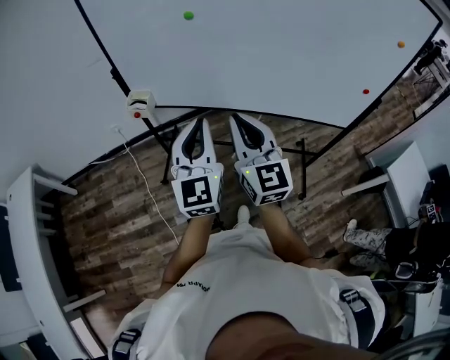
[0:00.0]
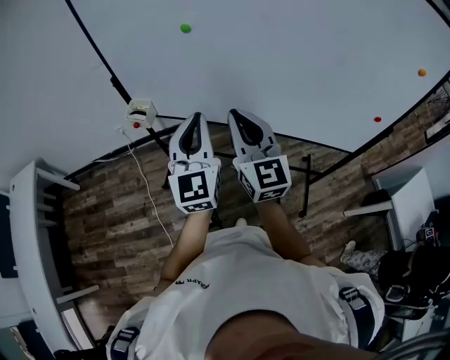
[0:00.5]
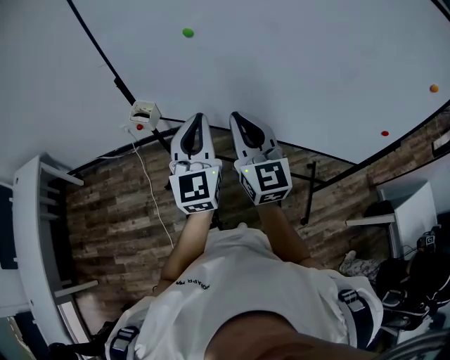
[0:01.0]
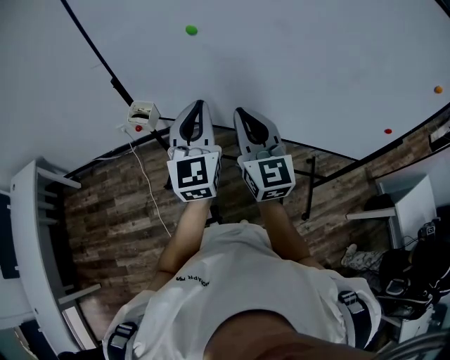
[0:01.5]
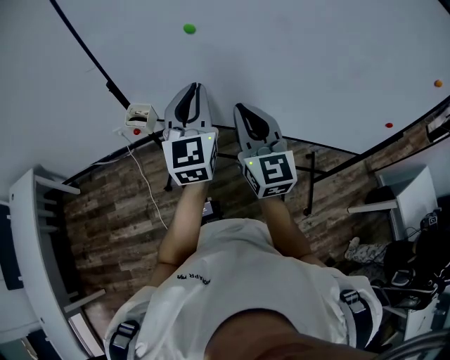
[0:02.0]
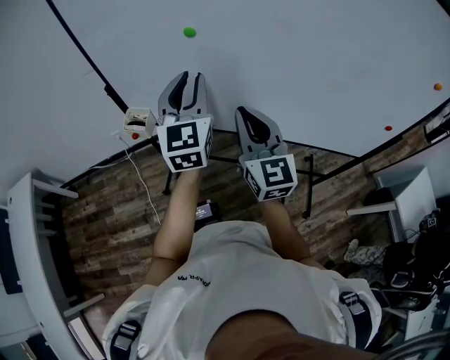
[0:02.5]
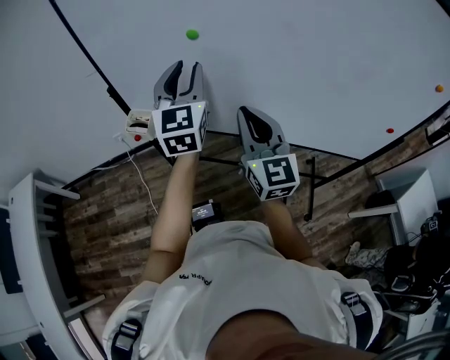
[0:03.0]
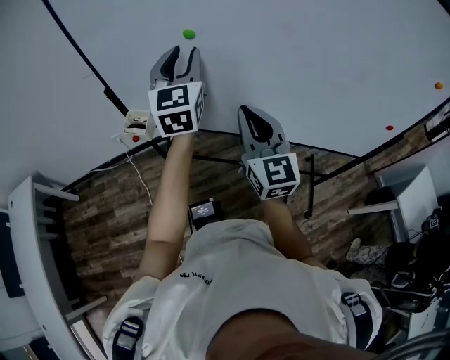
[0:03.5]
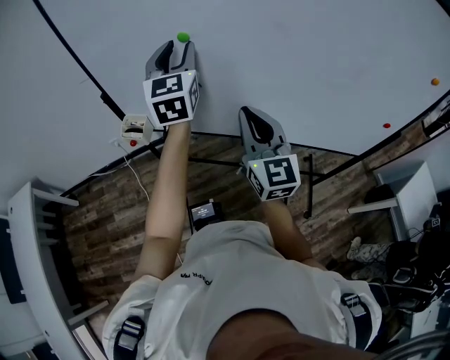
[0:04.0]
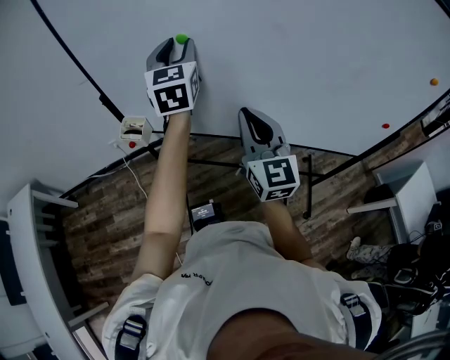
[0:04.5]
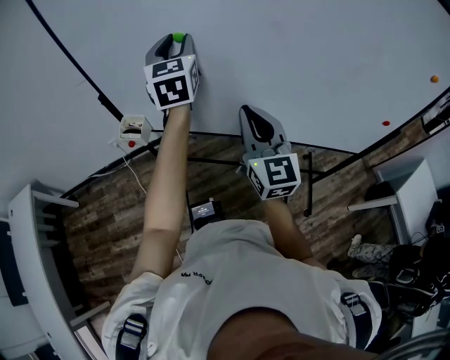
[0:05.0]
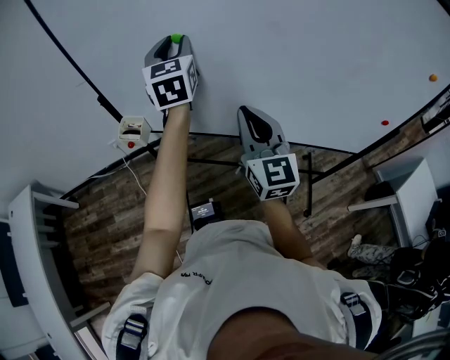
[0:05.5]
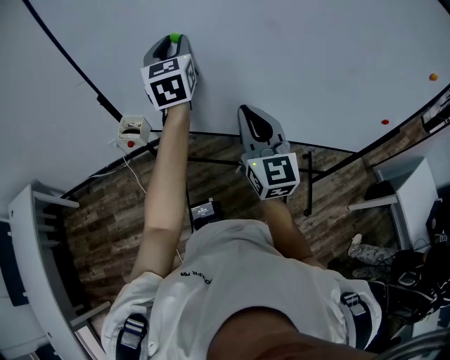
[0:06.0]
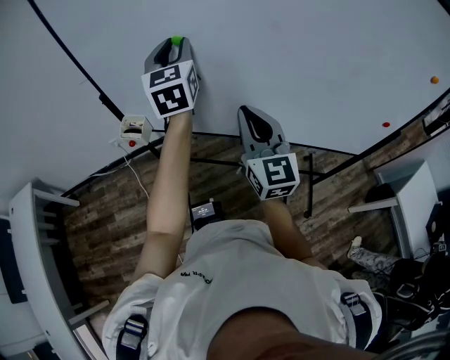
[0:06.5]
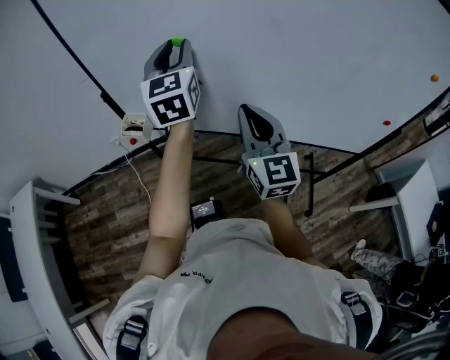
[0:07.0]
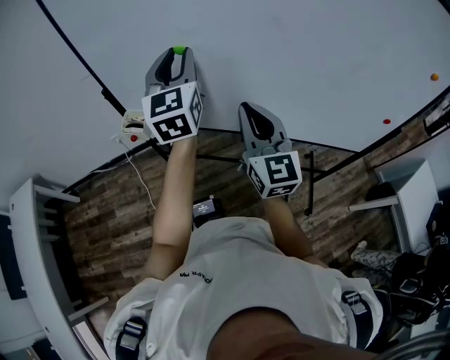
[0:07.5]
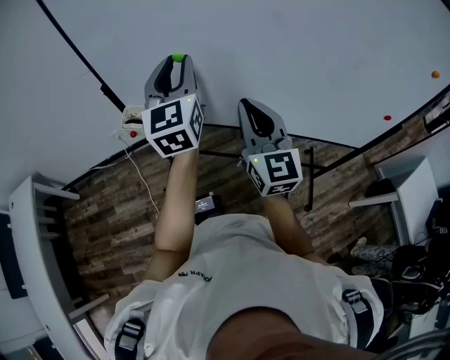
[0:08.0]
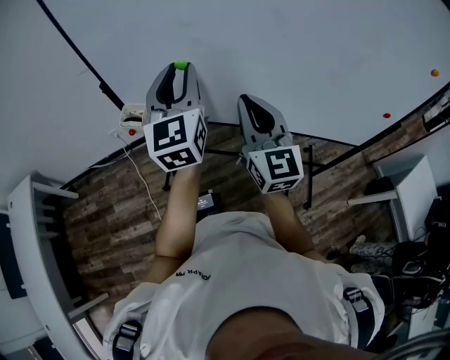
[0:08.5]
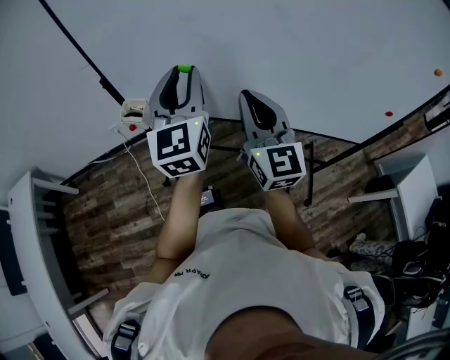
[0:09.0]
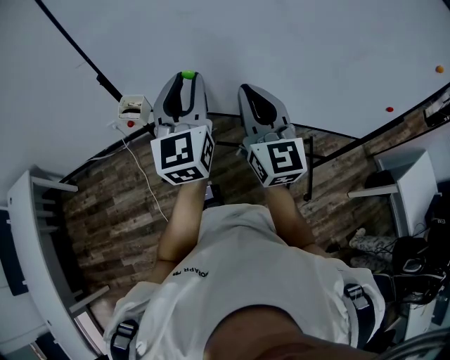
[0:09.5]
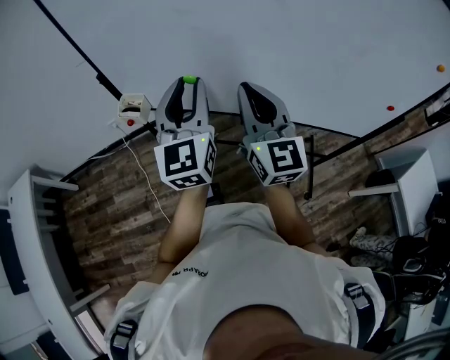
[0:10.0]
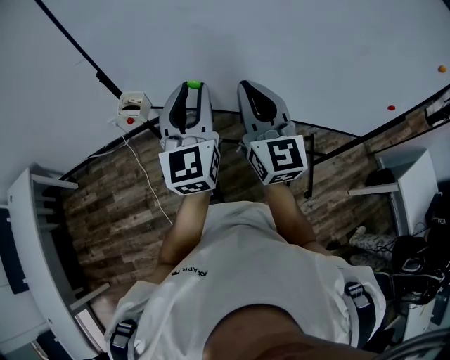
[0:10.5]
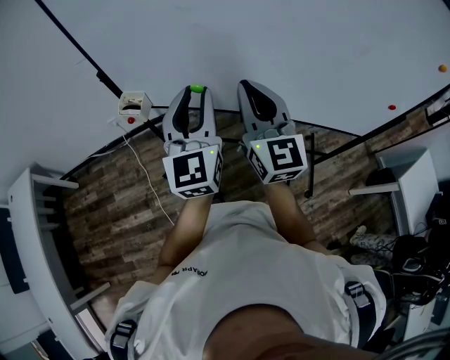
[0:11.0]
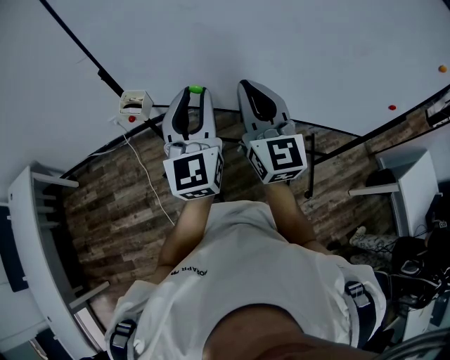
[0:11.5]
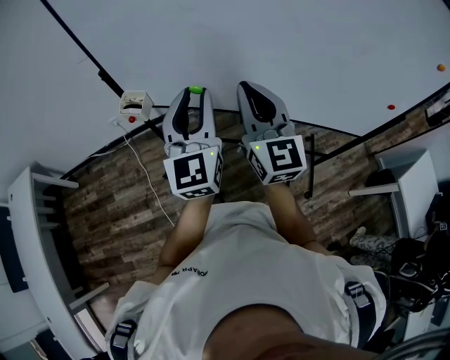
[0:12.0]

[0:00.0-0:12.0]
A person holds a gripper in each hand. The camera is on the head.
0:00.0 to 0:02.0: The two grippers go about 15 cm forward.
0:02.0 to 0:04.0: The left gripper travels forward and upward by about 15 cm, and opens up.
0:04.0 to 0:06.0: The grippers move only a little.
0:06.0 to 0:08.0: The left gripper shifts roughly 10 cm backward.
0:08.0 to 0:10.0: The left gripper goes roughly 10 cm backward.
0:10.0 to 0:12.0: The grippers move only a little.

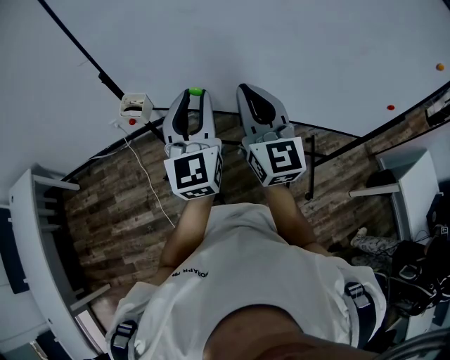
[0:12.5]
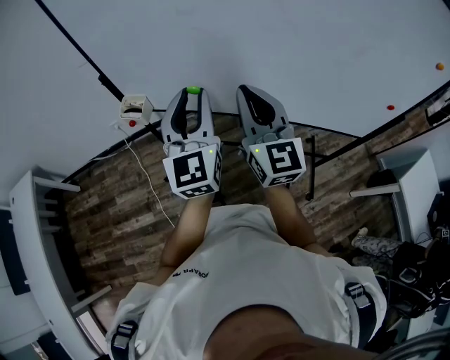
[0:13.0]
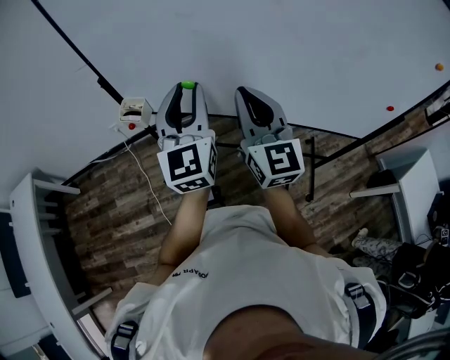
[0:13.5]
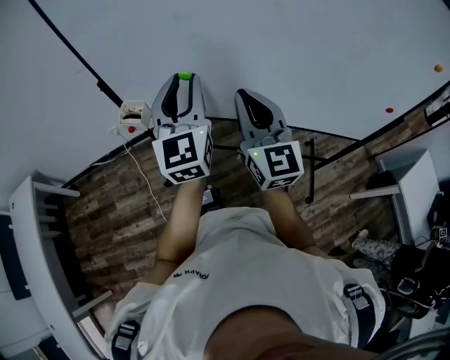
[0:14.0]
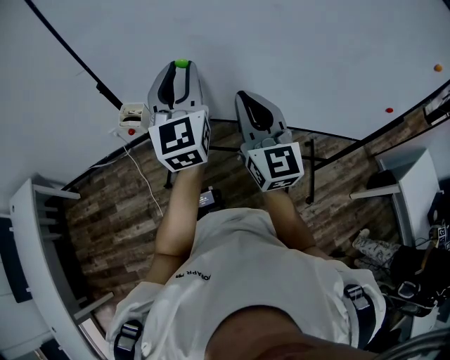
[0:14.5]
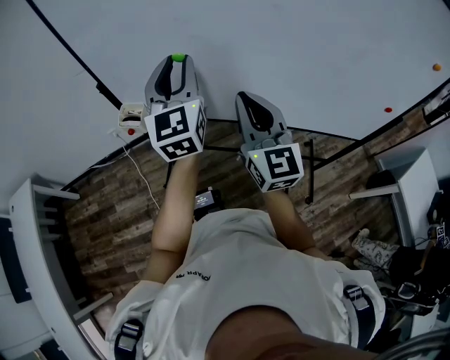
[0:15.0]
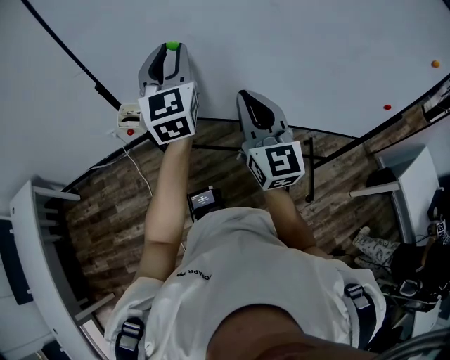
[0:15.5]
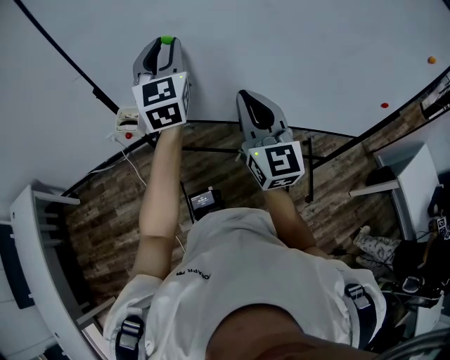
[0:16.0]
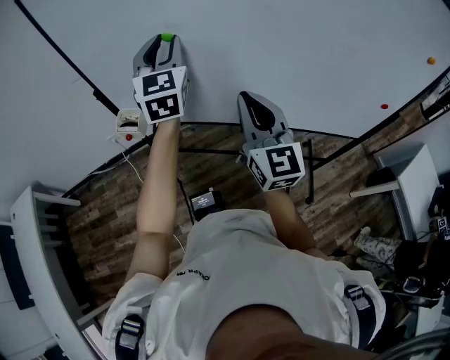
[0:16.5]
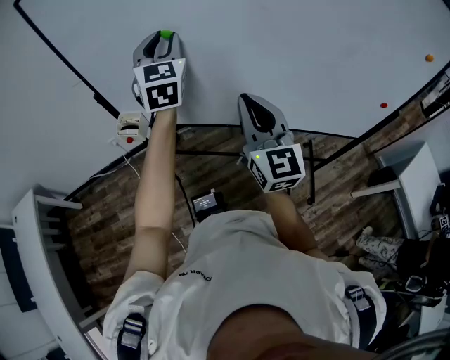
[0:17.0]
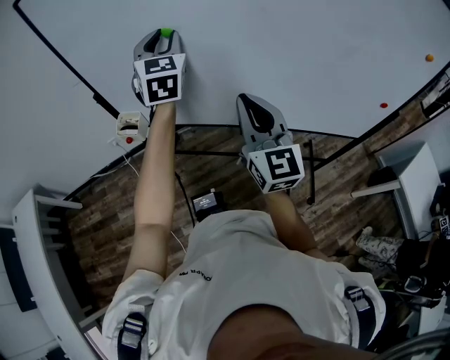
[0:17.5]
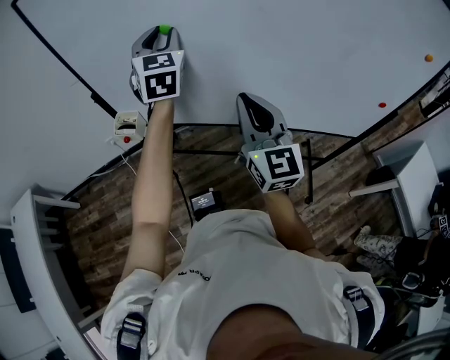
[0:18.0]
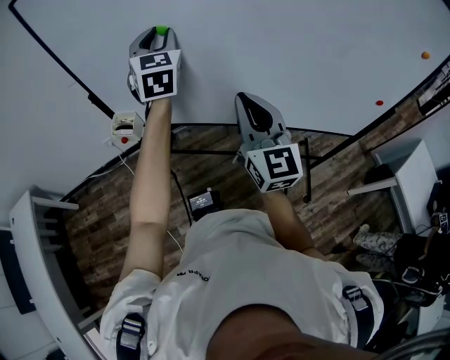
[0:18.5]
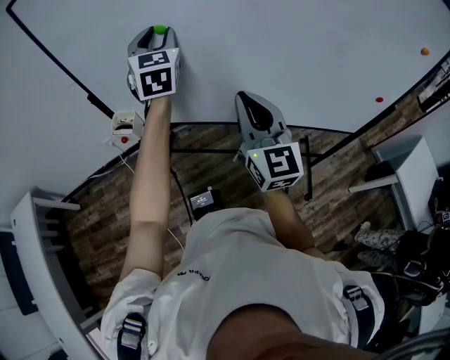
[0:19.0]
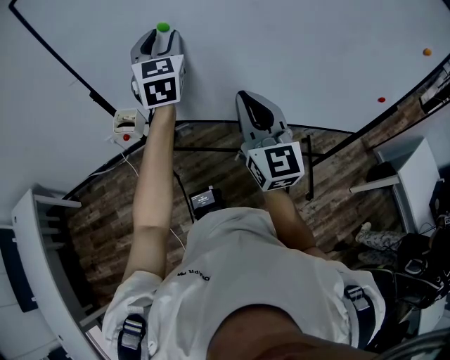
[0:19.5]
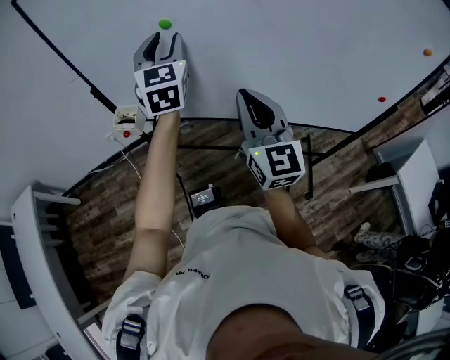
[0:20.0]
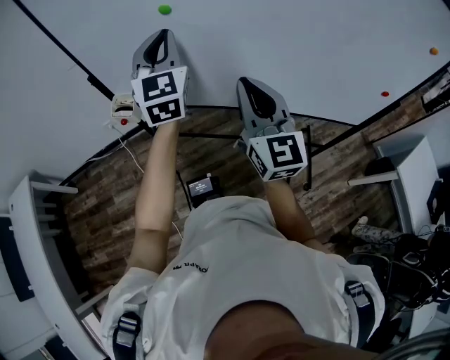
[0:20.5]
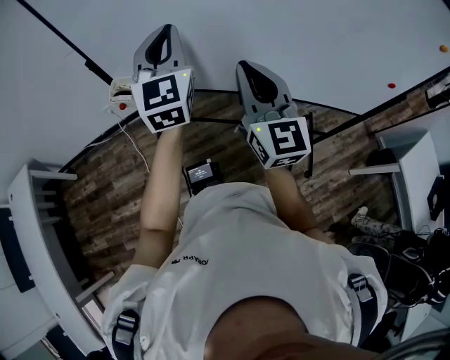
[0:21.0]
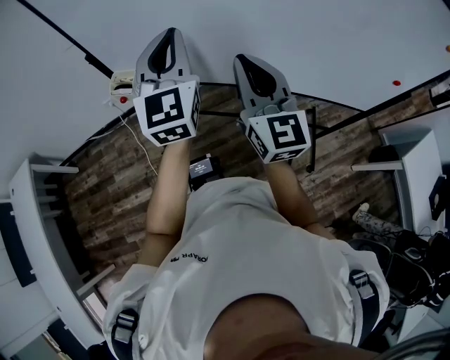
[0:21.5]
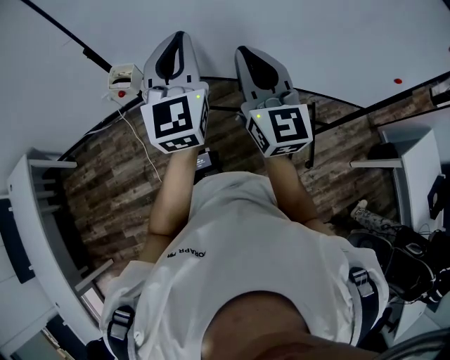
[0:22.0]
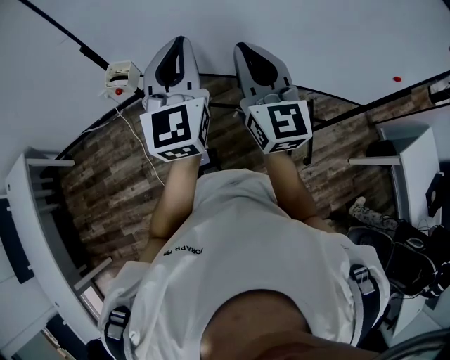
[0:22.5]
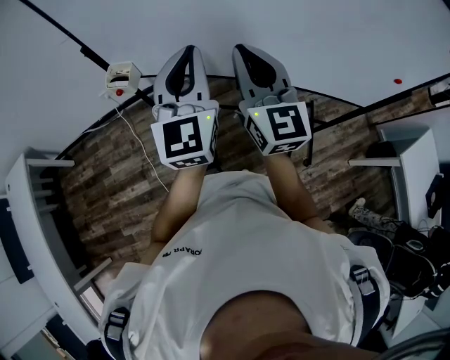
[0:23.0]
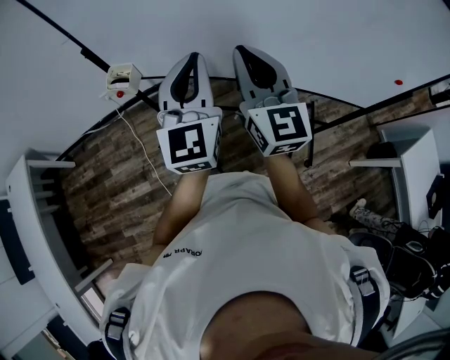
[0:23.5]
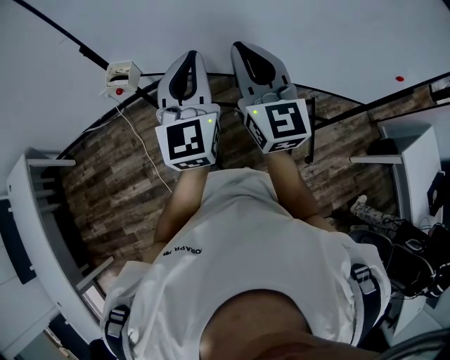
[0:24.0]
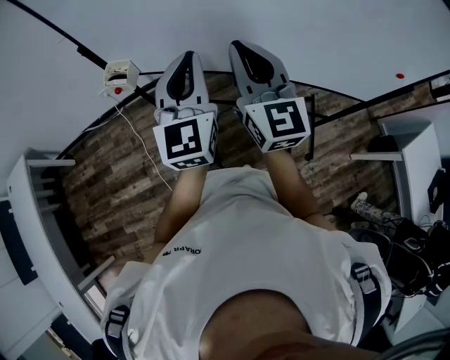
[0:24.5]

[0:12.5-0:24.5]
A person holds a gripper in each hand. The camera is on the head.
0:12.5 to 0:14.5: The left gripper heads forward, covering approximately 5 cm.
0:14.5 to 0:16.5: The left gripper is displaced forward by roughly 10 cm.
0:16.5 to 0:18.5: The grippers make only small movements.
0:18.5 to 0:20.5: The left gripper heads backward, covering approximately 5 cm, and closes up.
0:20.5 to 0:22.5: The left gripper goes about 10 cm backward.
0:22.5 to 0:24.5: The grippers make only small movements.

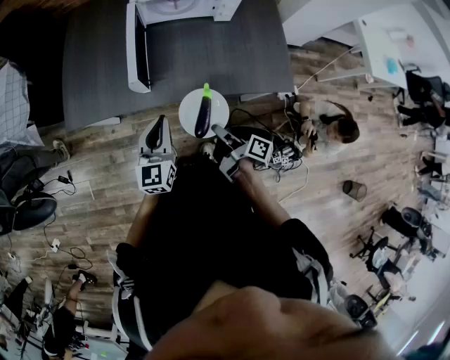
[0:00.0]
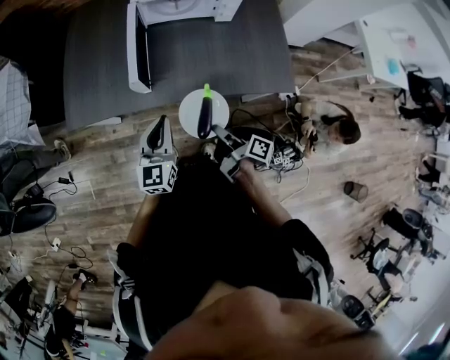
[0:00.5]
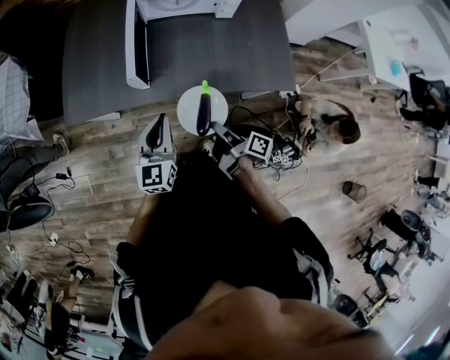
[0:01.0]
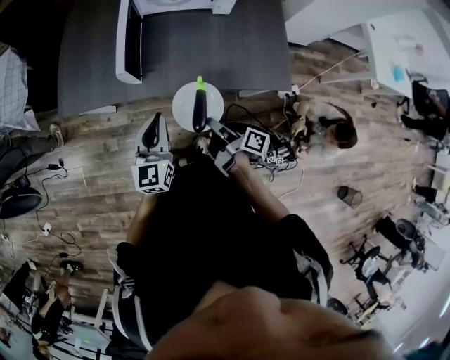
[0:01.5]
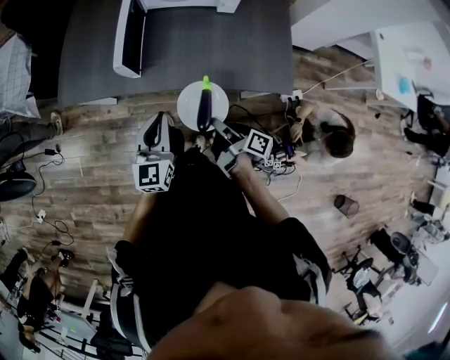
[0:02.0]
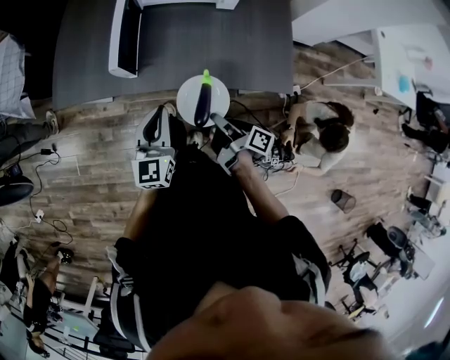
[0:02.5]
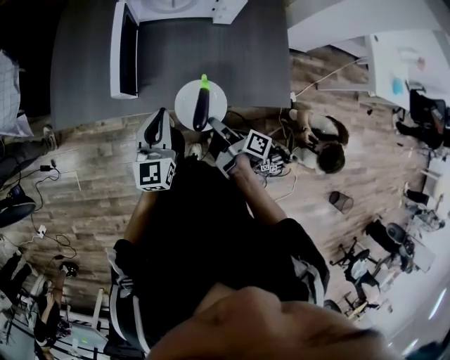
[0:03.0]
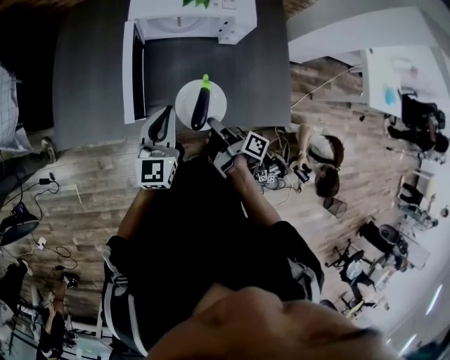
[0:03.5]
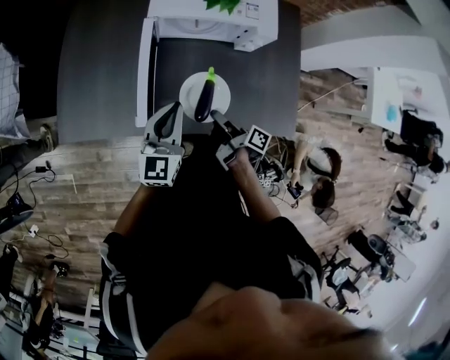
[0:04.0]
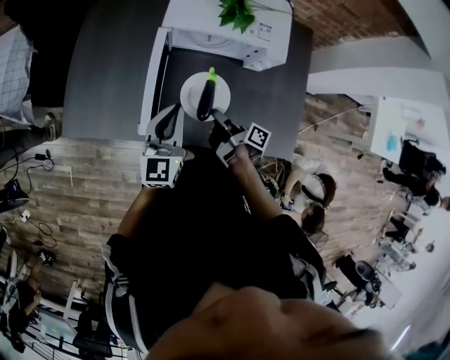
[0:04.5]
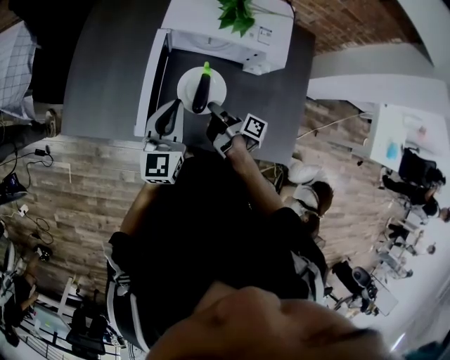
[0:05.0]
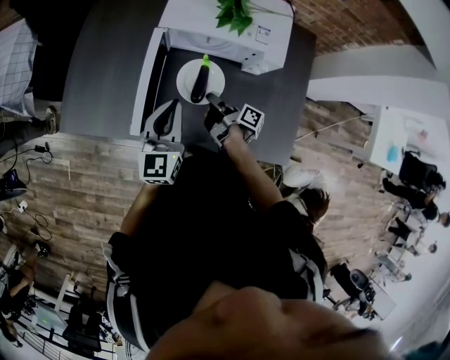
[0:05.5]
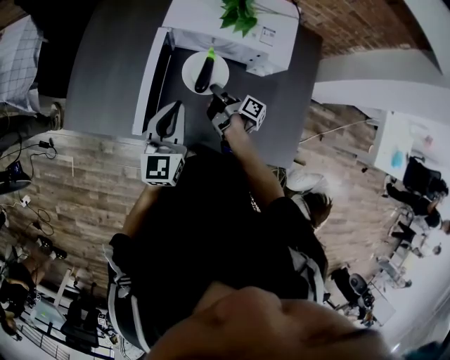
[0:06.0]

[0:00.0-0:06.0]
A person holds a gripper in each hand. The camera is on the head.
0:00.0 to 0:02.0: The left gripper changes place by roughly 5 cm.
0:02.0 to 0:04.0: The left gripper changes place by roughly 25 cm.
0:04.0 to 0:06.0: The left gripper moves approximately 10 cm.
